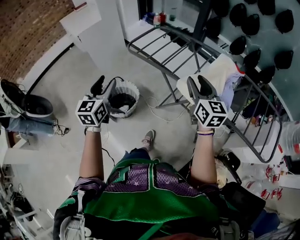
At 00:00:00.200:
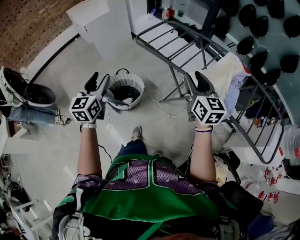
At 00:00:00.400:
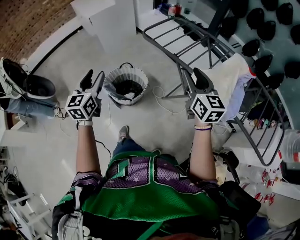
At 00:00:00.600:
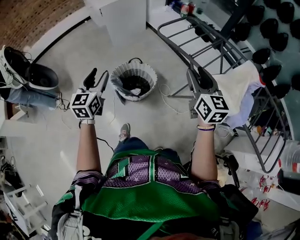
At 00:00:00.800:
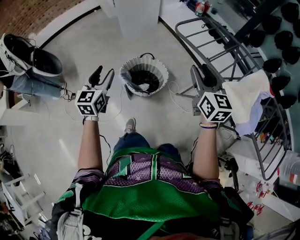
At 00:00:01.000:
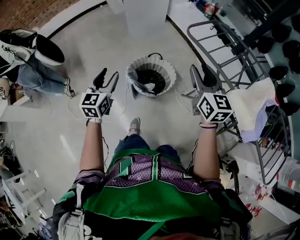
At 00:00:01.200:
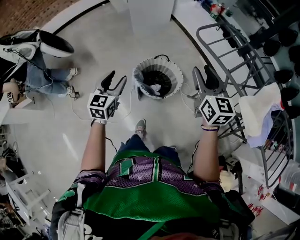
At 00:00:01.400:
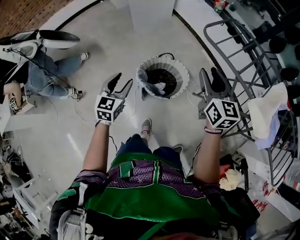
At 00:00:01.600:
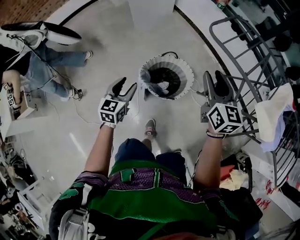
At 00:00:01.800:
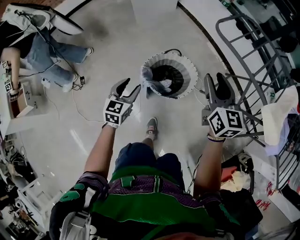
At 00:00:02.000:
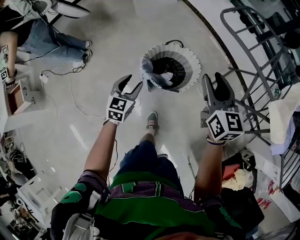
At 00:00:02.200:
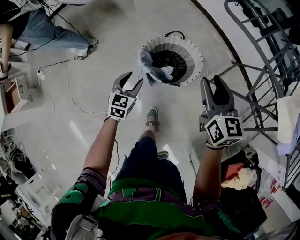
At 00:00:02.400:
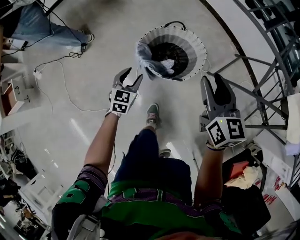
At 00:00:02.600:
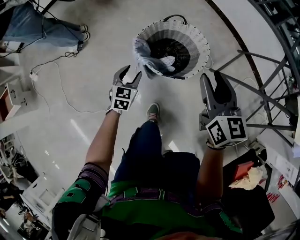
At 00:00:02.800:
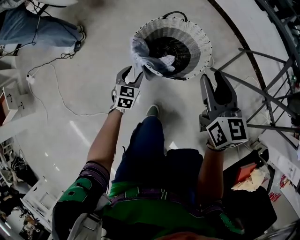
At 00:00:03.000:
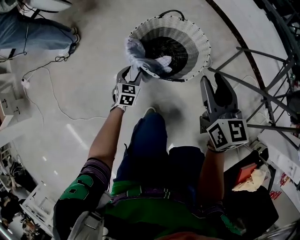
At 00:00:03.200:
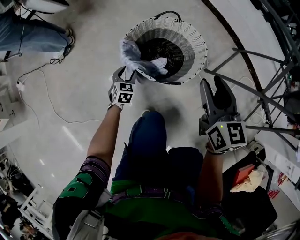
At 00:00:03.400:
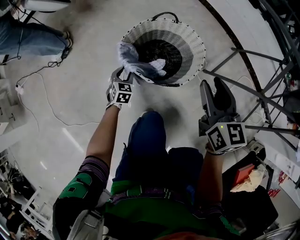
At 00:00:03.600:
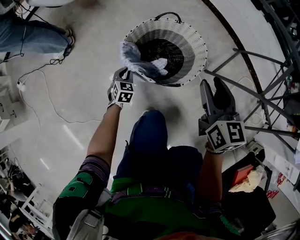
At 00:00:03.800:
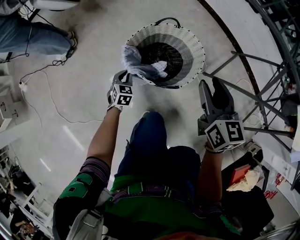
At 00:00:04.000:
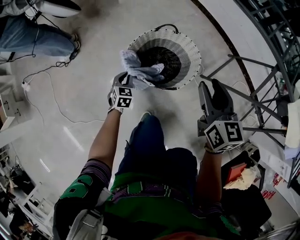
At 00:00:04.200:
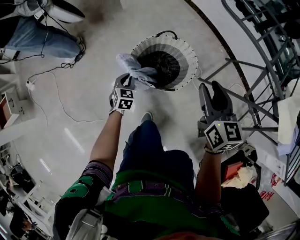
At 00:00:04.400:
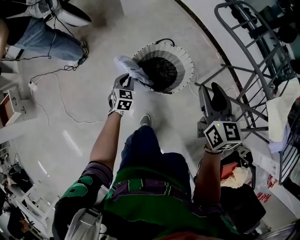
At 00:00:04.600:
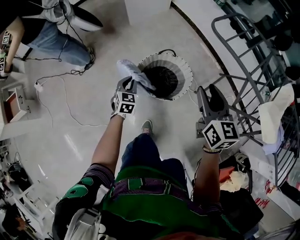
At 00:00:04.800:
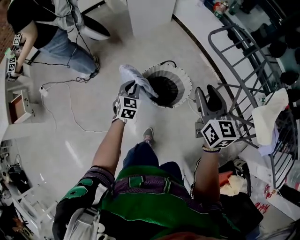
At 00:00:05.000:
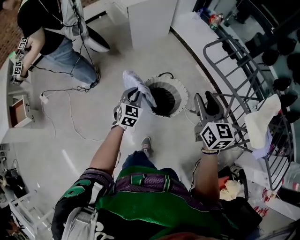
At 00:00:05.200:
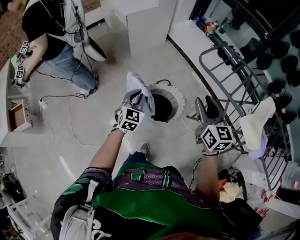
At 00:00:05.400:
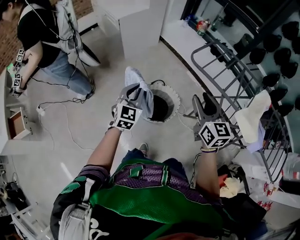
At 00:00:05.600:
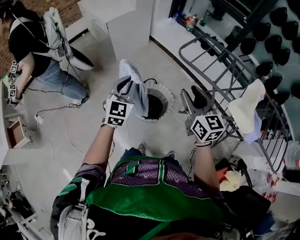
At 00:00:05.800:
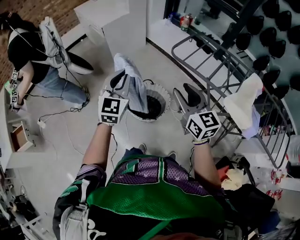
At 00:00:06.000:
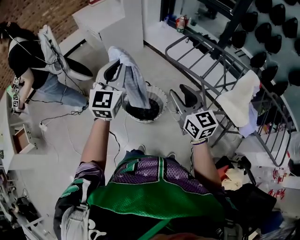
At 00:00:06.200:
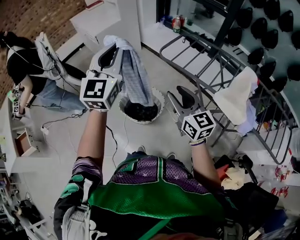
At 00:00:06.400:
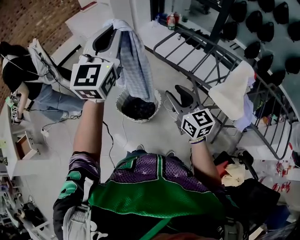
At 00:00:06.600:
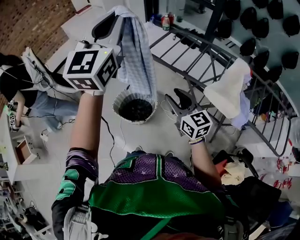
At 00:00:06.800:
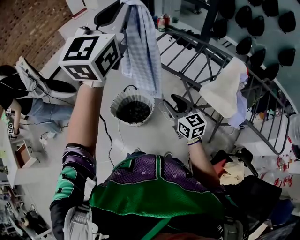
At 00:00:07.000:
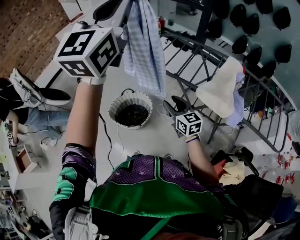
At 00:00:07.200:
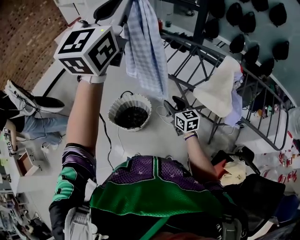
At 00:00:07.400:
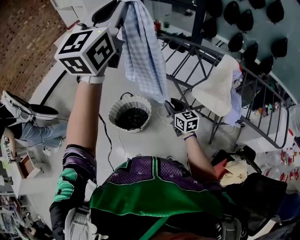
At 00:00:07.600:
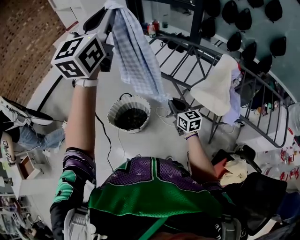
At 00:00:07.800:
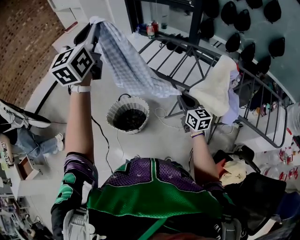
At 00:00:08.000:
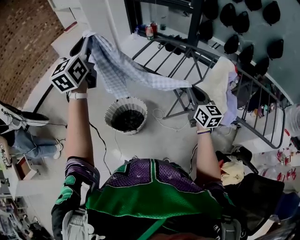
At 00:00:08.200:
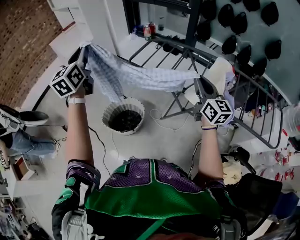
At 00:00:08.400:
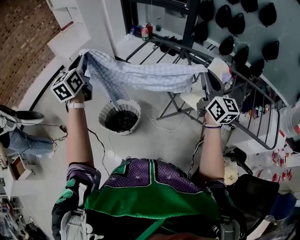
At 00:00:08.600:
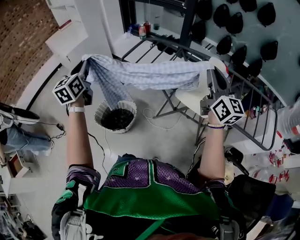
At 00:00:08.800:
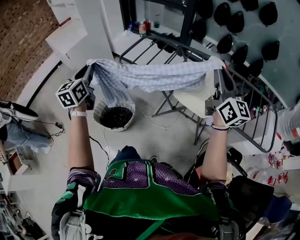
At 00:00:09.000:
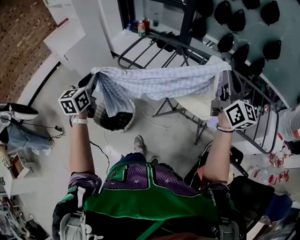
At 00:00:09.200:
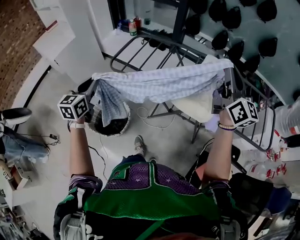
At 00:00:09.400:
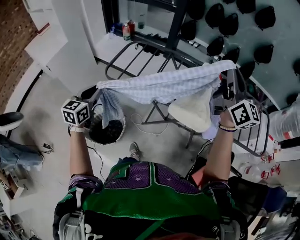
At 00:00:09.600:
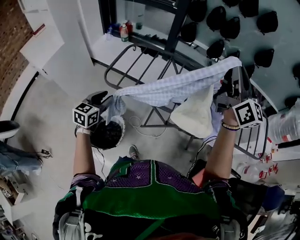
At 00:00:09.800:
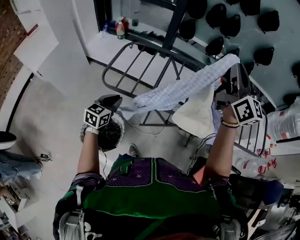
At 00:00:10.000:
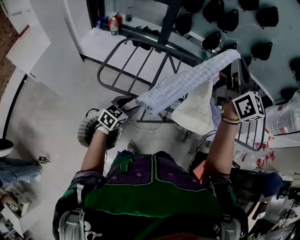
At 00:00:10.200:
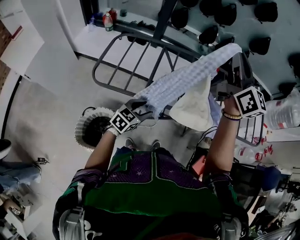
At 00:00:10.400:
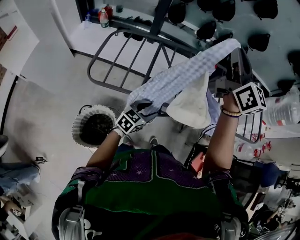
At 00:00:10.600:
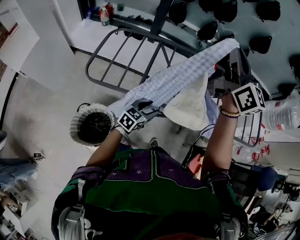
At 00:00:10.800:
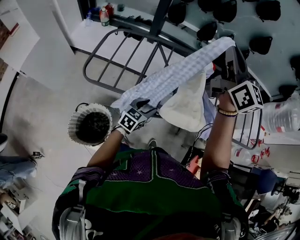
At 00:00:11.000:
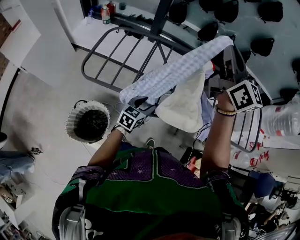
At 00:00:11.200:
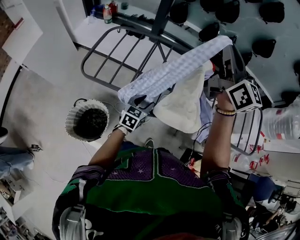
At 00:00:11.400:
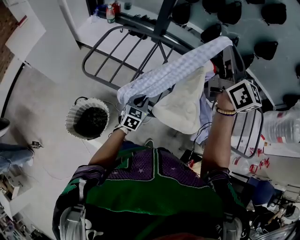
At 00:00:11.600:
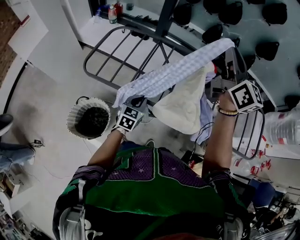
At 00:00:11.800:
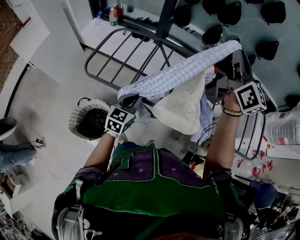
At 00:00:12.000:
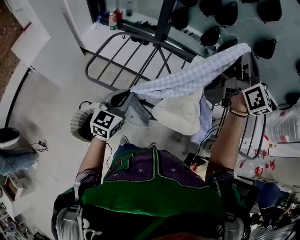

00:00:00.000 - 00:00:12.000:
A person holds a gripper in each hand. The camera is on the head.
00:00:00.000 - 00:00:01.600: The right gripper moves to the left and forward, roughly 40 cm. The left gripper is displaced to the left and downward by roughly 40 cm.
00:00:01.600 - 00:00:03.000: The grippers both shift downward by some 40 cm. The left gripper changes its angle by about 20 degrees.
00:00:03.000 - 00:00:04.400: Both grippers travel together upward, roughly 20 cm. The left gripper closes its fingers.
00:00:04.400 - 00:00:06.000: The right gripper moves upward, about 25 cm. The left gripper travels upward by about 60 cm, and tilts its fingers approximately 40 degrees upward.
00:00:06.000 - 00:00:07.600: The right gripper is displaced to the right and downward by some 25 cm, and closes up, while the left gripper shifts approximately 35 cm upward and to the right.
00:00:07.600 - 00:00:09.000: The right gripper moves upward and to the right, roughly 40 cm, and turns by approximately 40 degrees. The left gripper heads downward, covering some 30 cm, and swivels approximately 30 degrees.
00:00:09.000 - 00:00:10.400: The right gripper ends up about 20 cm from where it was, while the left gripper changes place by about 35 cm, turns by some 60 degrees, and opens its fingers.
00:00:10.400 - 00:00:12.000: The right gripper shifts some 15 cm to the right and forward. Meanwhile the left gripper goes about 15 cm upward, rotates roughly 40 degrees, and closes its fingers.

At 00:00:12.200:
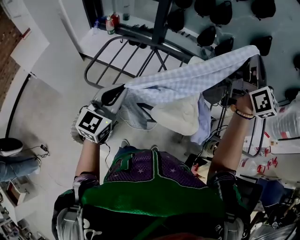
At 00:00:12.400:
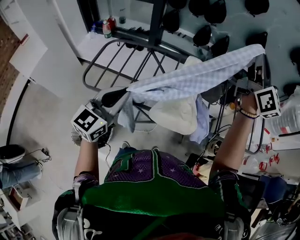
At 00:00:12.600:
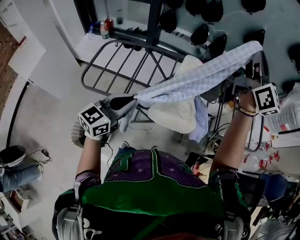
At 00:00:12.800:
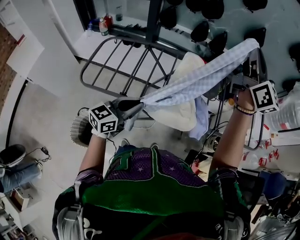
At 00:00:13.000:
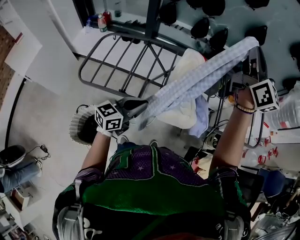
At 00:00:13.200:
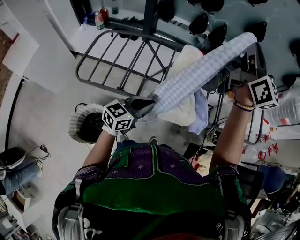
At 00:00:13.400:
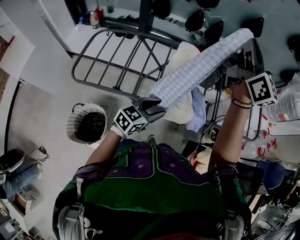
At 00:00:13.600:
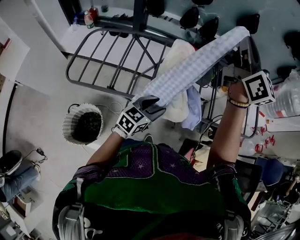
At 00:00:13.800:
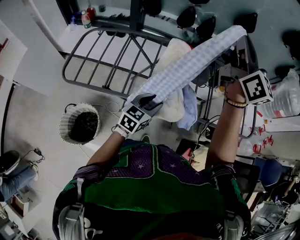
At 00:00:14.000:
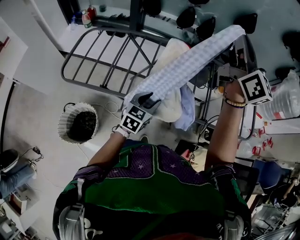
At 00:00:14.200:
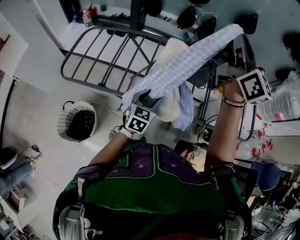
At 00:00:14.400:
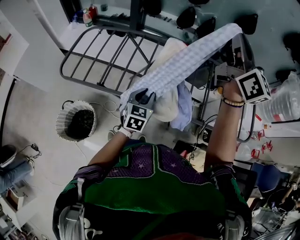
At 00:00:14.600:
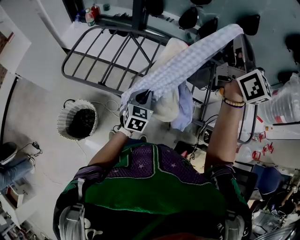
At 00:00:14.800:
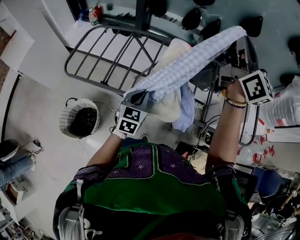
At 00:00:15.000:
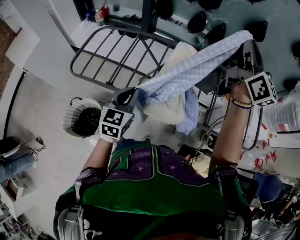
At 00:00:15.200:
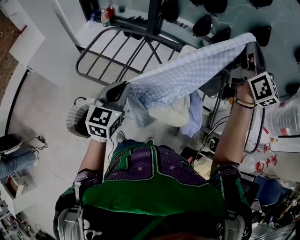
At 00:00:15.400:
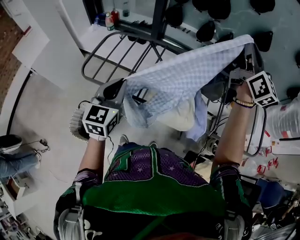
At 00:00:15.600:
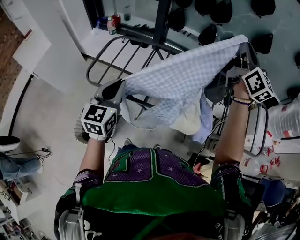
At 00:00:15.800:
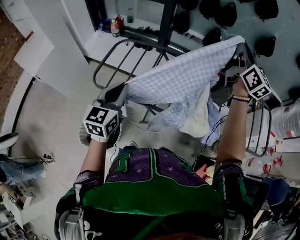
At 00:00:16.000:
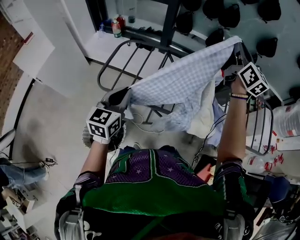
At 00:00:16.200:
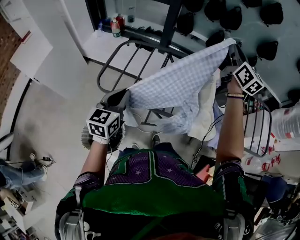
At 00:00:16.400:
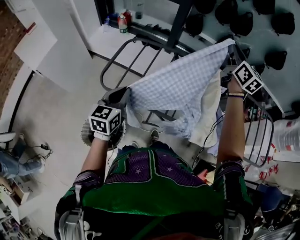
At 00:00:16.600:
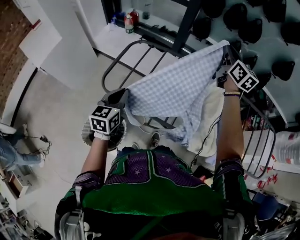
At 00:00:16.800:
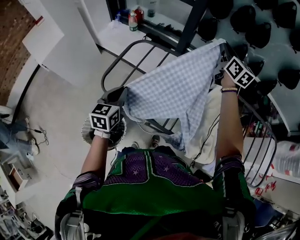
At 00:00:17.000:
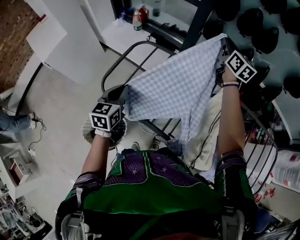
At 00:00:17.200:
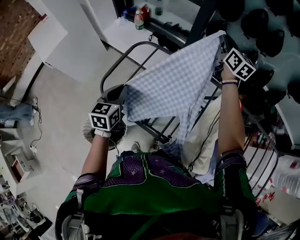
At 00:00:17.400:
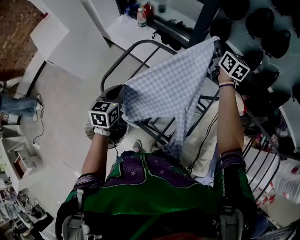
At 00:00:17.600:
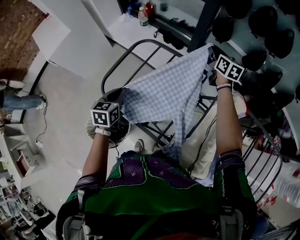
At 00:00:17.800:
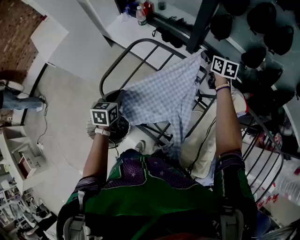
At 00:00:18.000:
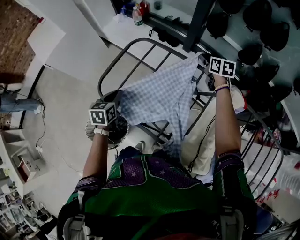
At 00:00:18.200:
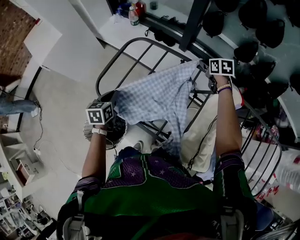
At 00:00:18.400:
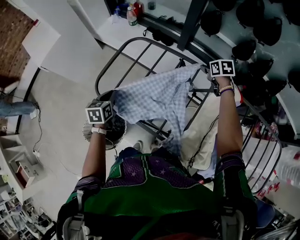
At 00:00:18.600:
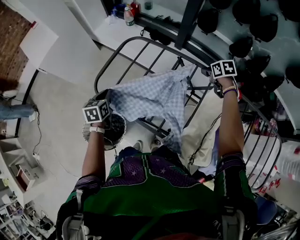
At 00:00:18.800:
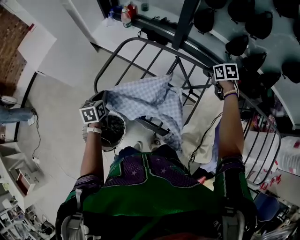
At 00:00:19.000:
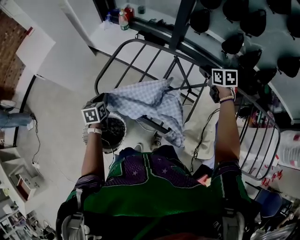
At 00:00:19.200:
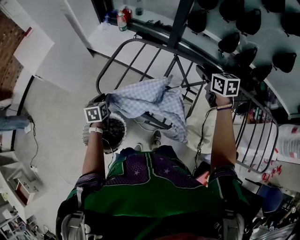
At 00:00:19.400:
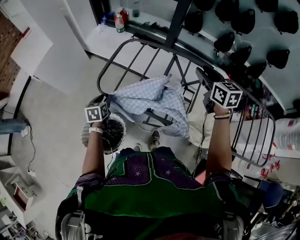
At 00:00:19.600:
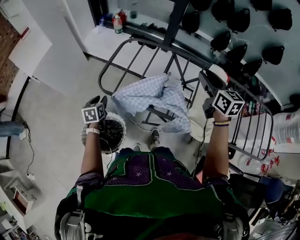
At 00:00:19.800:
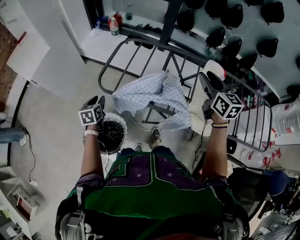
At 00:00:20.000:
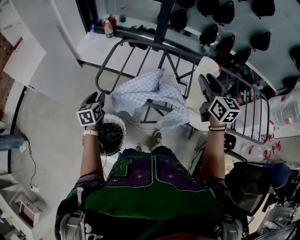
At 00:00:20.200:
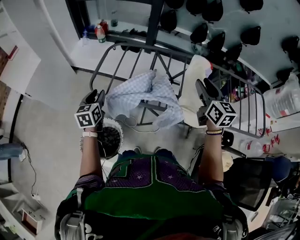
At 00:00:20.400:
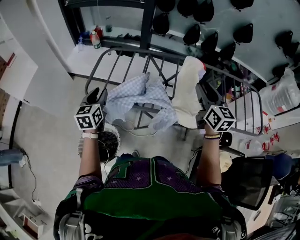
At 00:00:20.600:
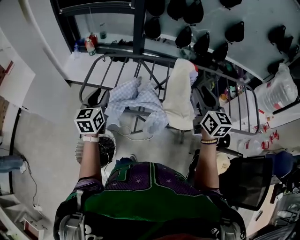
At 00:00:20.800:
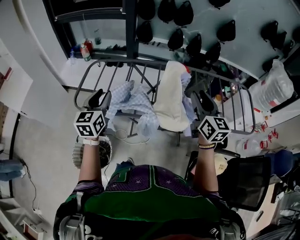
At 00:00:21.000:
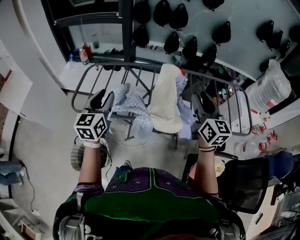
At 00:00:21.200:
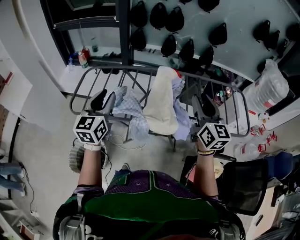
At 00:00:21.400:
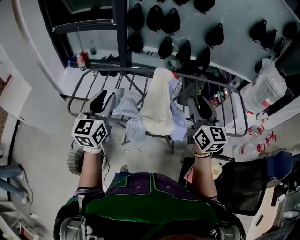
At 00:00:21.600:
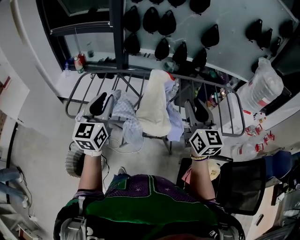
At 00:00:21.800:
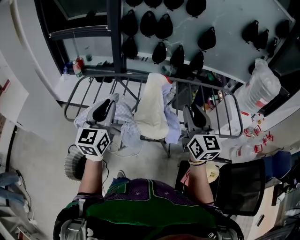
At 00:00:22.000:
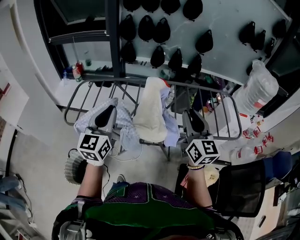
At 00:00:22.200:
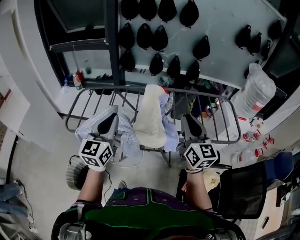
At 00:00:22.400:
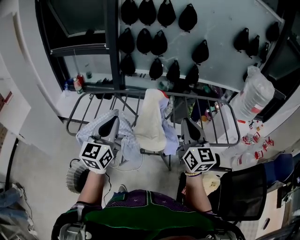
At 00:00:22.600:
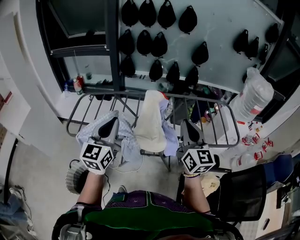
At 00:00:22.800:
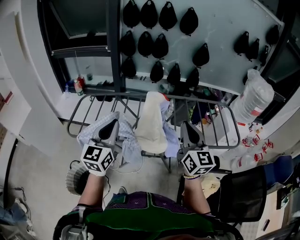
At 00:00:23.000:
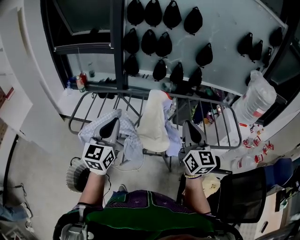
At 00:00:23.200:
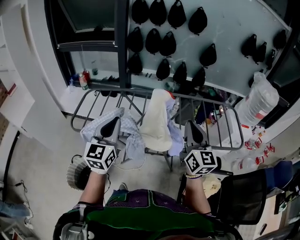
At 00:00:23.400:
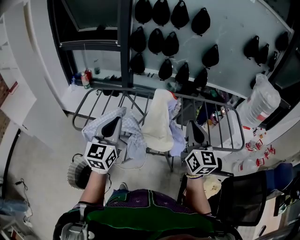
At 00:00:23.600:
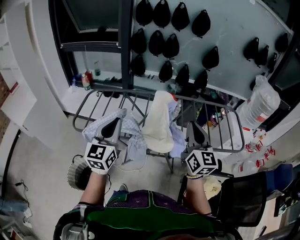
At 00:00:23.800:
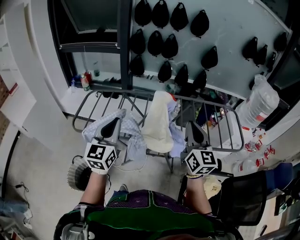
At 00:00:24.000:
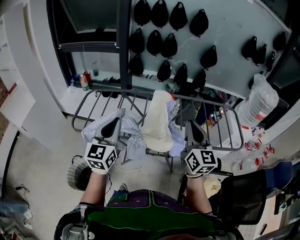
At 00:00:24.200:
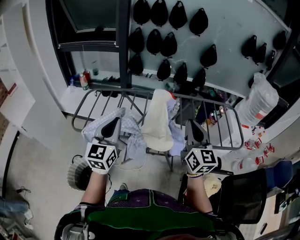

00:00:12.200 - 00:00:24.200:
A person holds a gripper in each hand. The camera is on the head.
00:00:12.200 - 00:00:13.800: The left gripper moves to the right and downward, roughly 30 cm, changes its angle by some 30 degrees, and opens.
00:00:13.800 - 00:00:15.200: The left gripper travels to the left and upward by some 20 cm, turns by some 30 degrees, and closes its fingers, while the right gripper changes place by approximately 5 cm.
00:00:15.200 - 00:00:16.600: The left gripper is displaced to the left and forward by some 25 cm. The right gripper moves to the left, forward and downward, about 35 cm.
00:00:16.600 - 00:00:18.200: The right gripper goes approximately 30 cm downward and forward, tilts its fingers roughly 50 degrees downward, and opens up. The left gripper shifts some 15 cm downward and forward, and changes its angle by roughly 20 degrees.
00:00:18.200 - 00:00:19.800: The right gripper shifts about 35 cm backward and upward, and tips its fingers upward by roughly 30 degrees, while the left gripper heads to the left and backward, covering about 15 cm, and opens.
00:00:19.800 - 00:00:21.200: The left gripper shifts roughly 40 cm to the right and upward, and angles its fingers upward, by about 30 degrees, while the right gripper goes roughly 30 cm to the right, backward and upward, and rotates roughly 20 degrees.
00:00:21.200 - 00:00:22.600: The left gripper travels to the right and backward by about 10 cm, and closes. The right gripper moves backward, roughly 5 cm, and closes up.
00:00:22.600 - 00:00:24.200: The grippers make only small movements.
